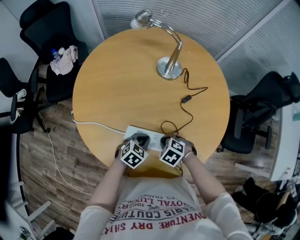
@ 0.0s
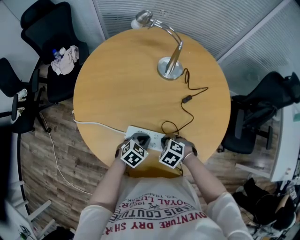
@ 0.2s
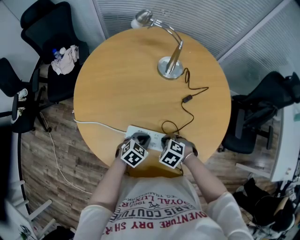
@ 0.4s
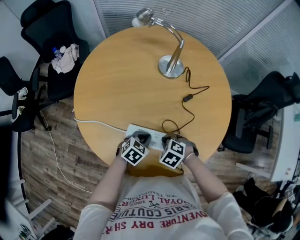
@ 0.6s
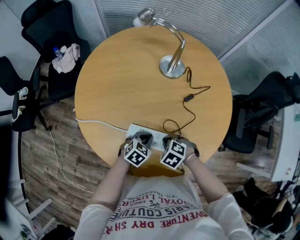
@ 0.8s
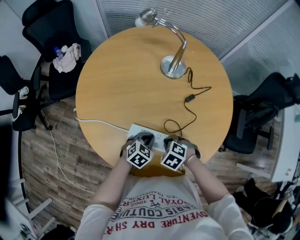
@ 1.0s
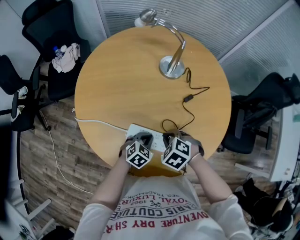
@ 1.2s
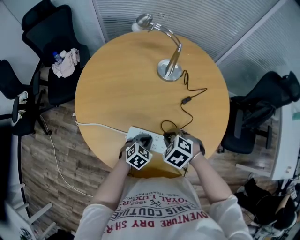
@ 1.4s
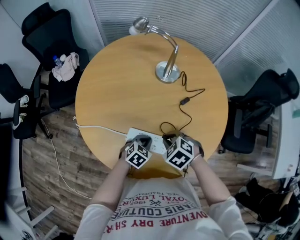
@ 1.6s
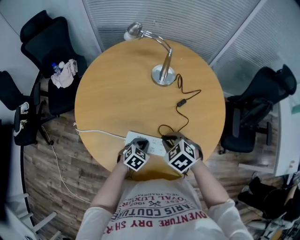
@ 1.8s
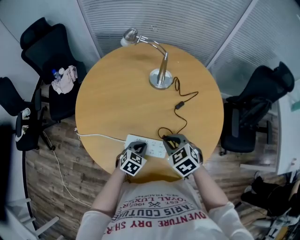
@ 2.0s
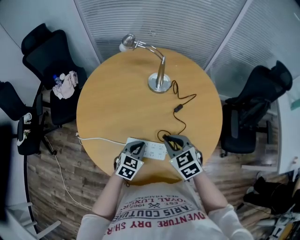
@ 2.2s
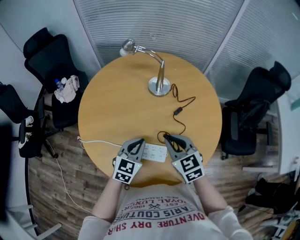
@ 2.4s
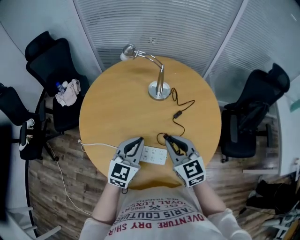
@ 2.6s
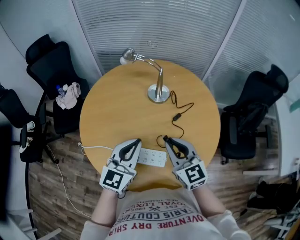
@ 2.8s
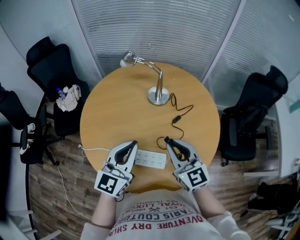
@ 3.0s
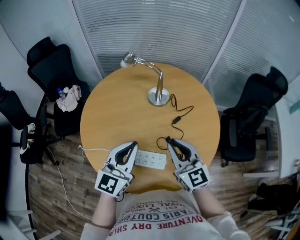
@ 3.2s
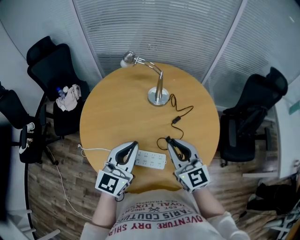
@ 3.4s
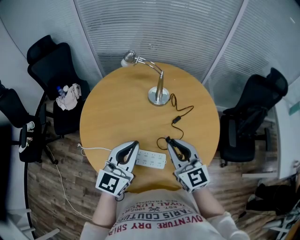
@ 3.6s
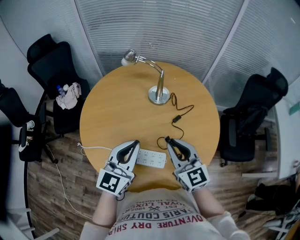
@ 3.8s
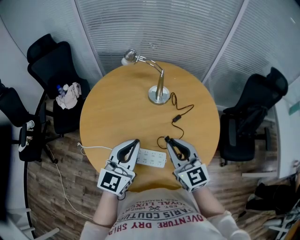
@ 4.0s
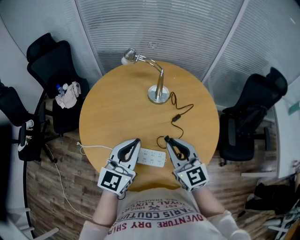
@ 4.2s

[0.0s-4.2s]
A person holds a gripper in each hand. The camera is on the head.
0.0s to 1.4s: The right gripper travels upward by roughly 10 cm.
1.4s to 2.8s: The right gripper moves upward, approximately 20 cm, and tilts its fingers approximately 60 degrees upward. The left gripper moves upward, approximately 30 cm, and tilts its fingers some 50 degrees upward.
2.8s to 4.2s: The grippers stay close to where they were, moving slightly.

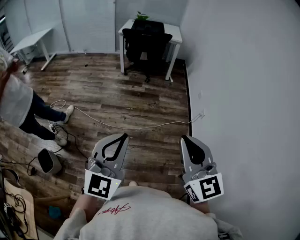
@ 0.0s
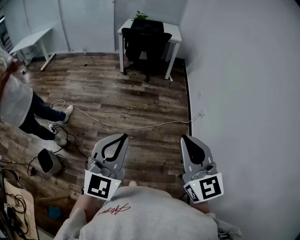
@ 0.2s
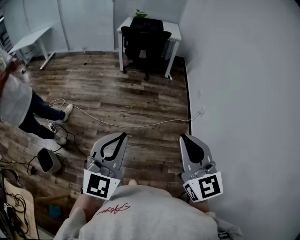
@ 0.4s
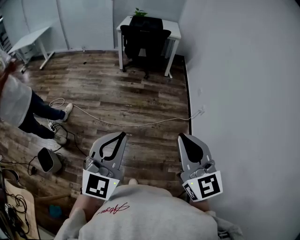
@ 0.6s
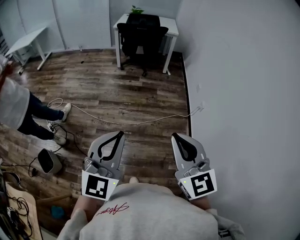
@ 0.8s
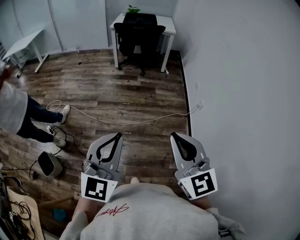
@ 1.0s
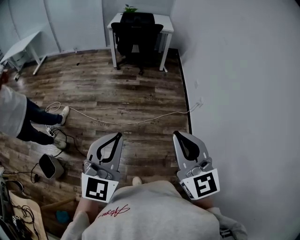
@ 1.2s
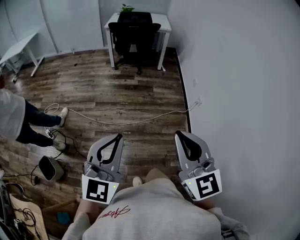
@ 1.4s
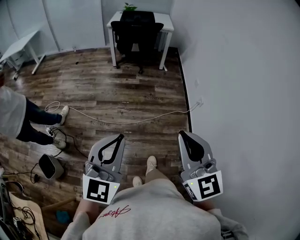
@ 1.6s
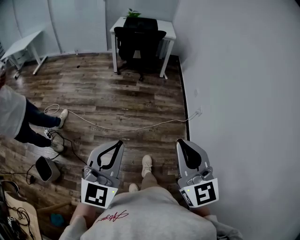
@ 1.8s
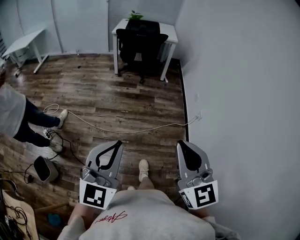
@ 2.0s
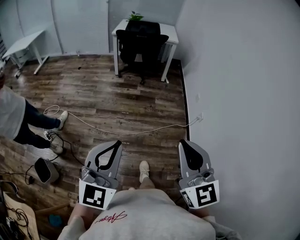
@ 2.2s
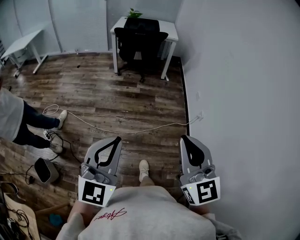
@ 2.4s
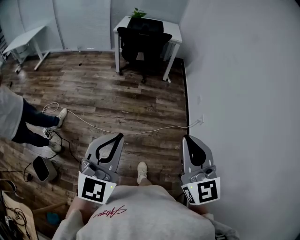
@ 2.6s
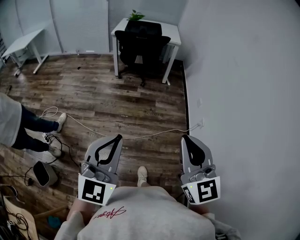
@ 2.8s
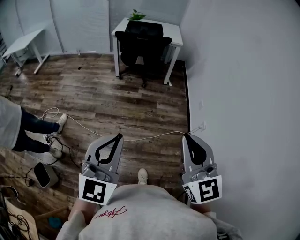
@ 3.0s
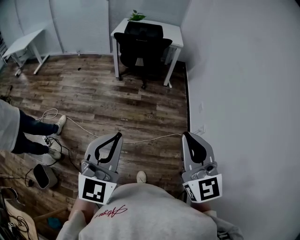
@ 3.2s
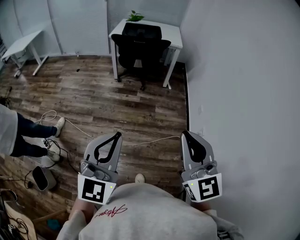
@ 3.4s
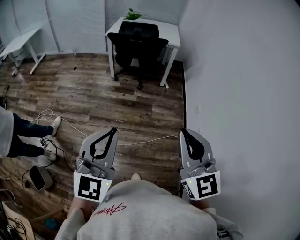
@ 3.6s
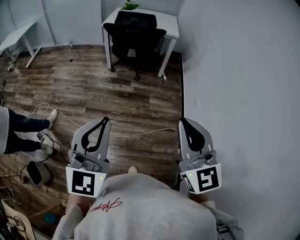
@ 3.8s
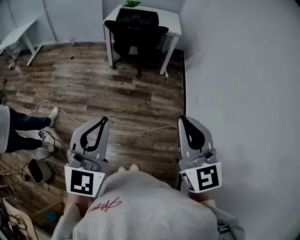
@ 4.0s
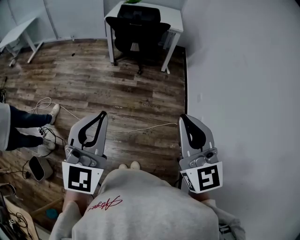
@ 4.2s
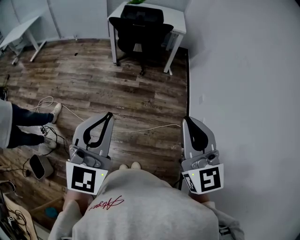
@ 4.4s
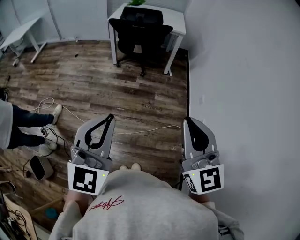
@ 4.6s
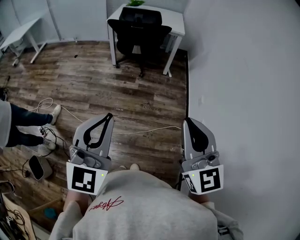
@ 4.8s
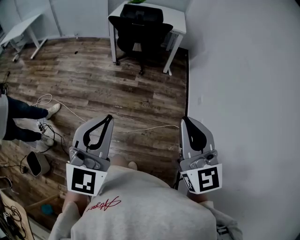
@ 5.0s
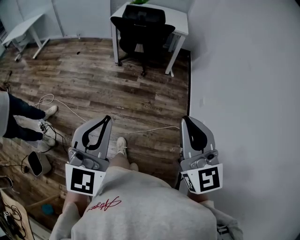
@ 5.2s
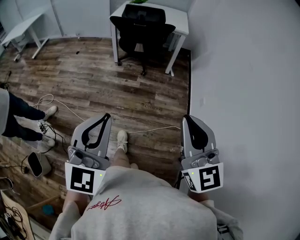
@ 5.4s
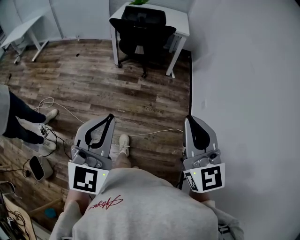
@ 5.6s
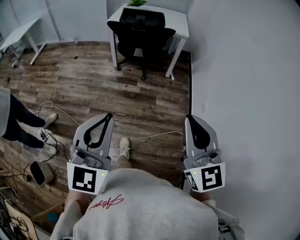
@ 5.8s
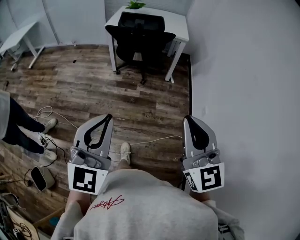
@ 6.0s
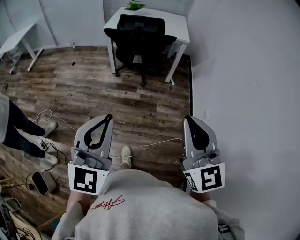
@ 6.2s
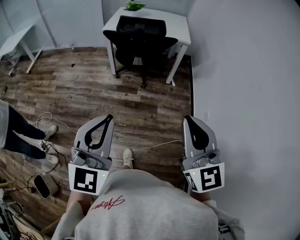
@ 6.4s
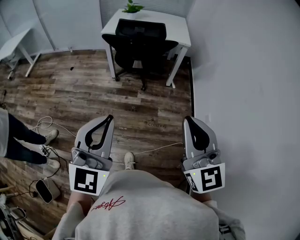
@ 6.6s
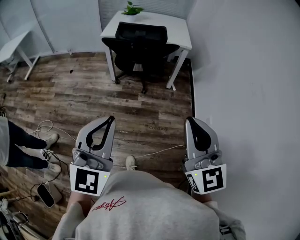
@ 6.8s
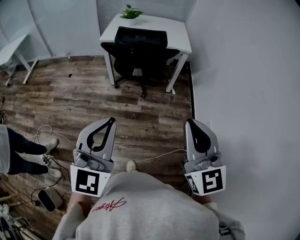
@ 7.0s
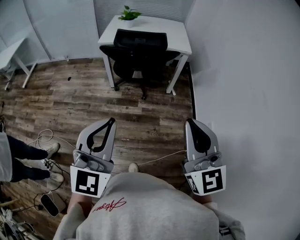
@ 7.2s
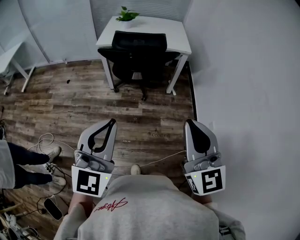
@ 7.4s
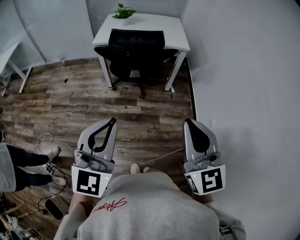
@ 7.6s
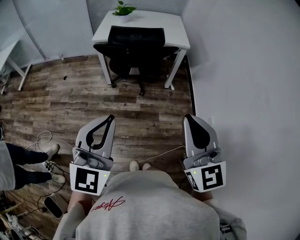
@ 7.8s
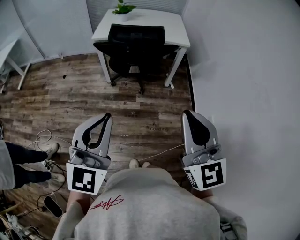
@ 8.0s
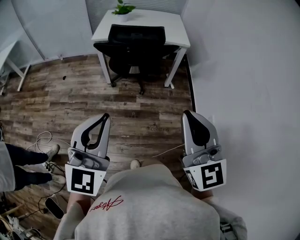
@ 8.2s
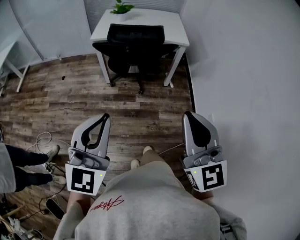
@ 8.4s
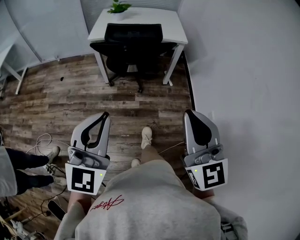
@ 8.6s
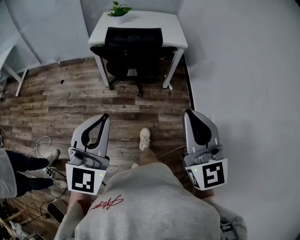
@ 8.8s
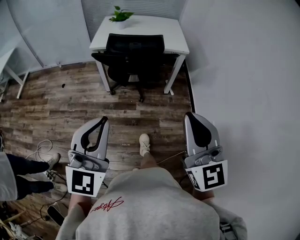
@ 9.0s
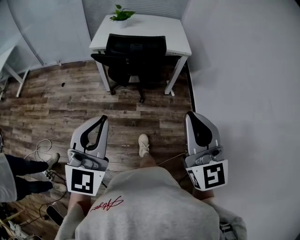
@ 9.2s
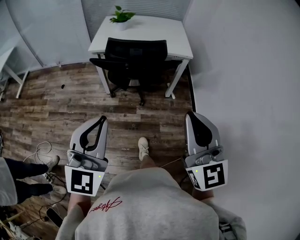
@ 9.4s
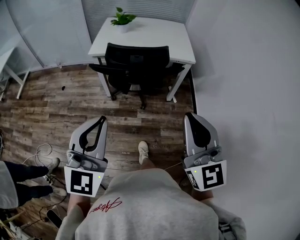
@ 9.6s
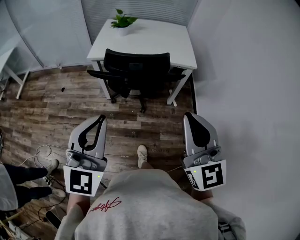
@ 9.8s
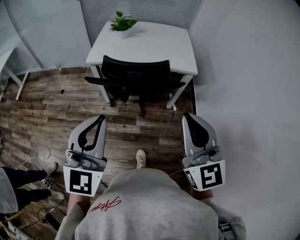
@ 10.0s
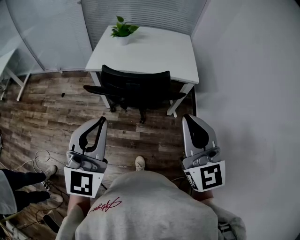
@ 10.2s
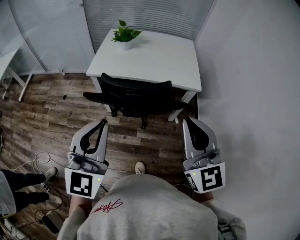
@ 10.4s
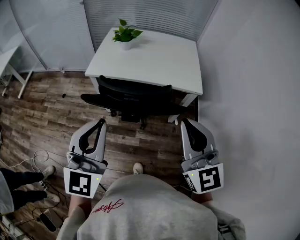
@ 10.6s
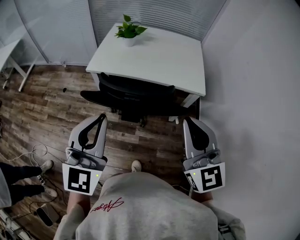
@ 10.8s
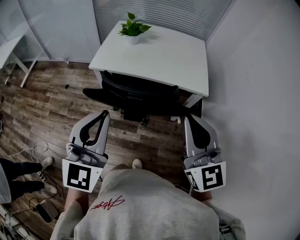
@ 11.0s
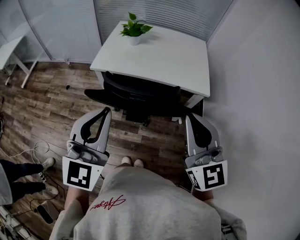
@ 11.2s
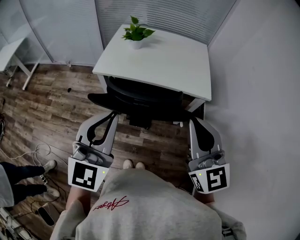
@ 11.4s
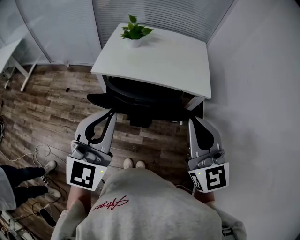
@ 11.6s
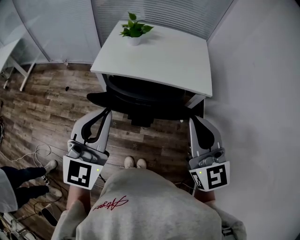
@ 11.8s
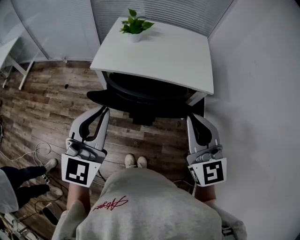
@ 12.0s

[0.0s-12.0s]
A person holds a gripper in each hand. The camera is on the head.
0.0s to 1.6s: The grippers move only a little.
1.6s to 3.0s: The grippers both shift forward by roughly 20 cm.
3.0s to 4.4s: The grippers both shift forward by some 15 cm.
4.4s to 6.0s: Both grippers travel together forward, approximately 15 cm.
6.0s to 7.6s: The two grippers go approximately 20 cm forward.
7.6s to 9.0s: The left gripper ends up roughly 5 cm from where it was; the right gripper moves forward, about 5 cm.
9.0s to 10.4s: Both grippers move forward, about 30 cm.
10.4s to 12.0s: The grippers both shift forward by approximately 10 cm.

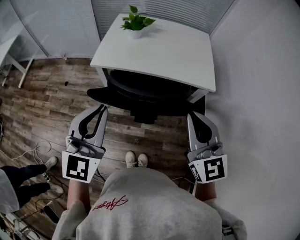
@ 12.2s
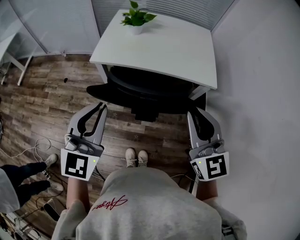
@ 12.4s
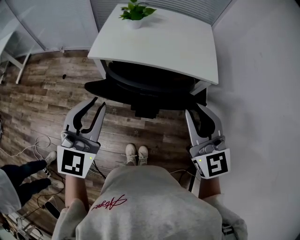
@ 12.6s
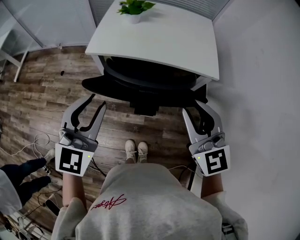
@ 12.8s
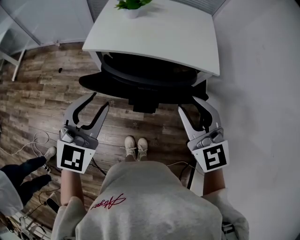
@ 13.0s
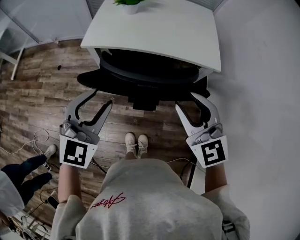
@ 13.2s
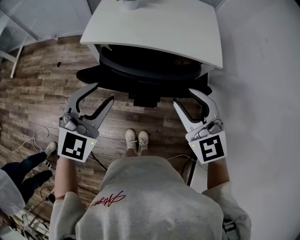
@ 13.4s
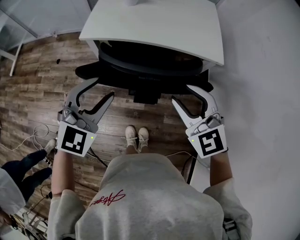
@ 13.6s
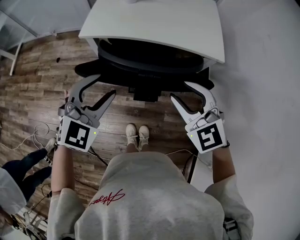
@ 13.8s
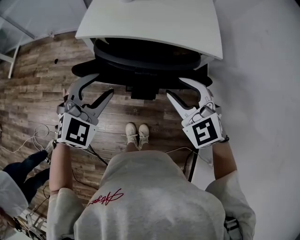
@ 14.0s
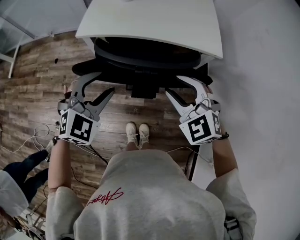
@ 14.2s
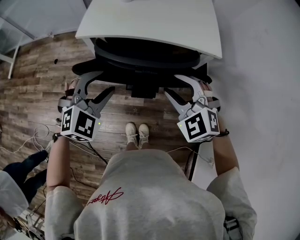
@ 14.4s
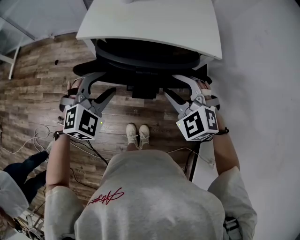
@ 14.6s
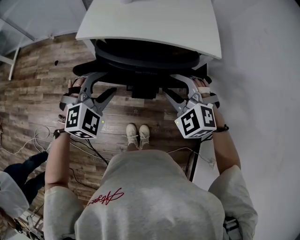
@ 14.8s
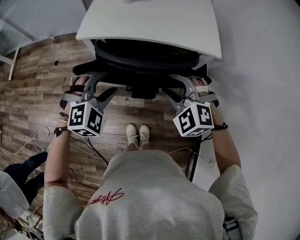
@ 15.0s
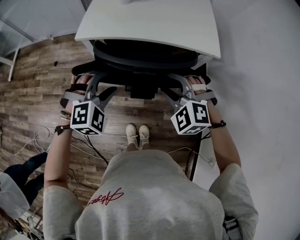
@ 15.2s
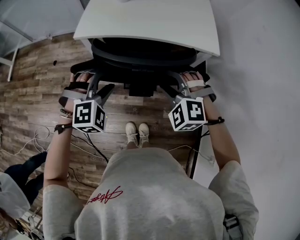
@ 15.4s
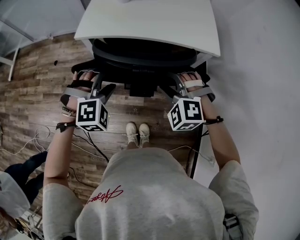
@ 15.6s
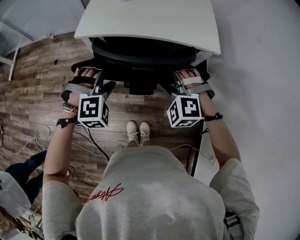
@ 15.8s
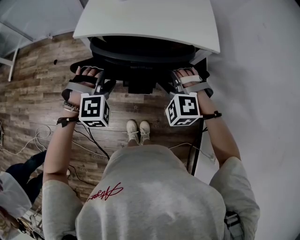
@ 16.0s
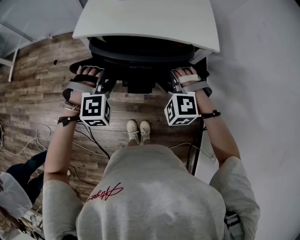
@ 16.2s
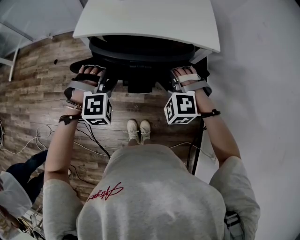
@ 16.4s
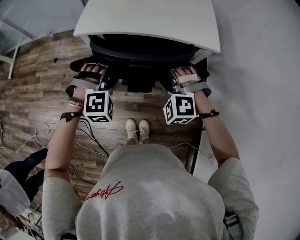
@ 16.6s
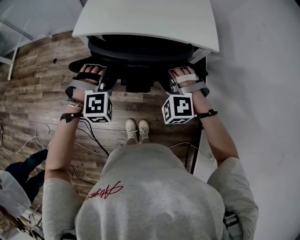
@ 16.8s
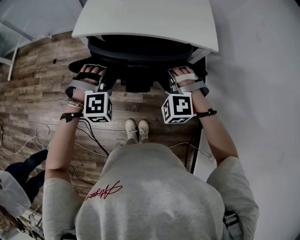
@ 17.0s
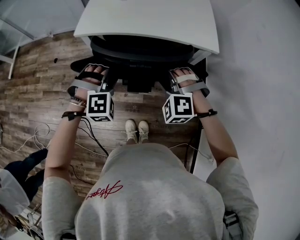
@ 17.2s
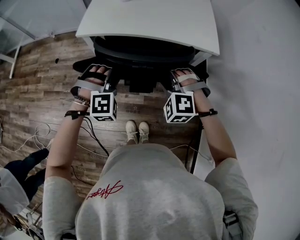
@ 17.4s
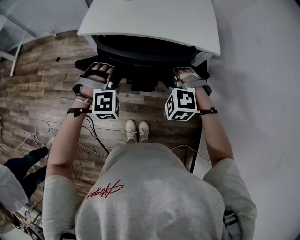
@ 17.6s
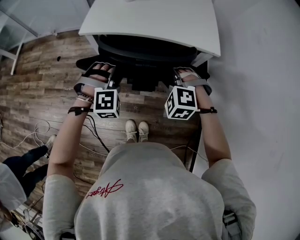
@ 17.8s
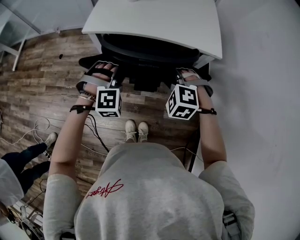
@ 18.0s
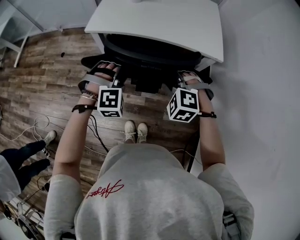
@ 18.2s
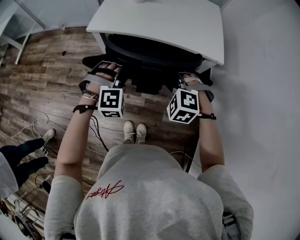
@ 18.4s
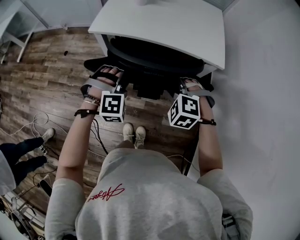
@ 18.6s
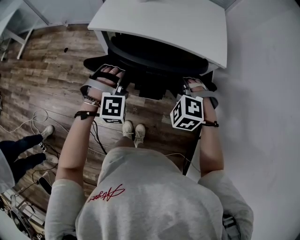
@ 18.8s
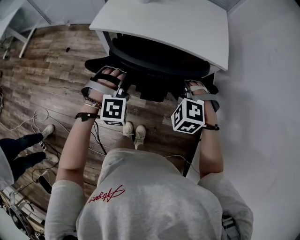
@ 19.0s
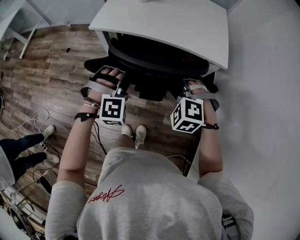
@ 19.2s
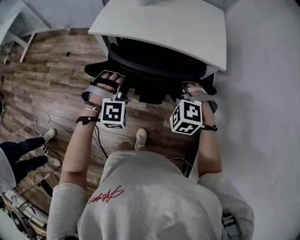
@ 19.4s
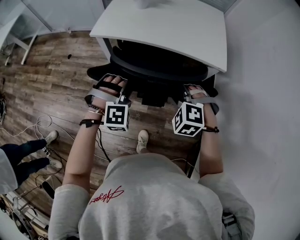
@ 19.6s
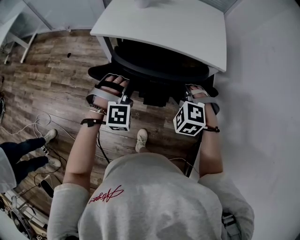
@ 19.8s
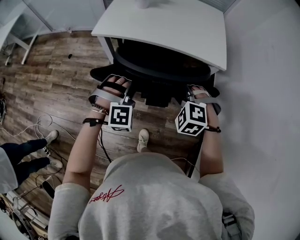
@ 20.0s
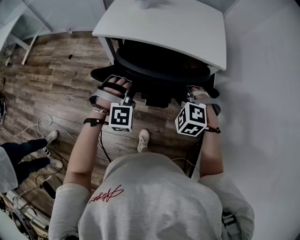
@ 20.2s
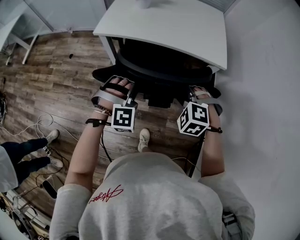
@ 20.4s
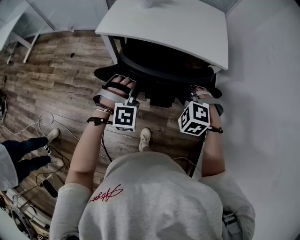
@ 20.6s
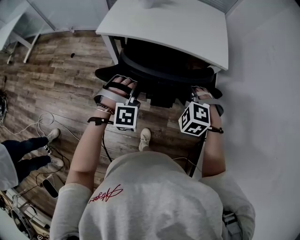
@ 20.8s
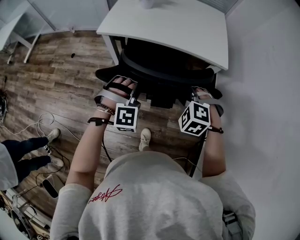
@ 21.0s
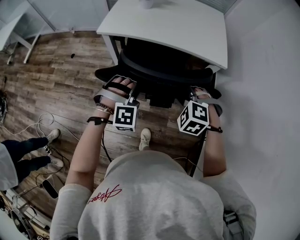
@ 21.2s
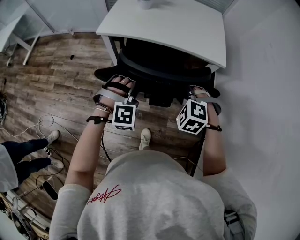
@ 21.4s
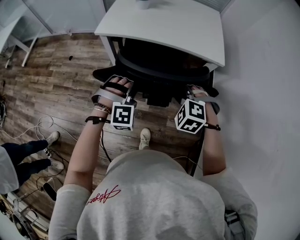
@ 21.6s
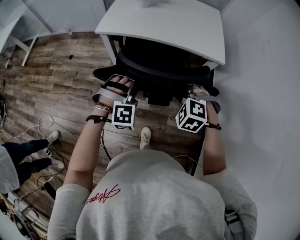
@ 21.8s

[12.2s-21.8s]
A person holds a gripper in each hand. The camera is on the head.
12.2s to 13.8s: The two grippers go about 10 cm downward. The left gripper changes its angle by about 40 degrees, and opens; the right gripper changes its angle by some 30 degrees, and opens.
13.8s to 15.4s: Both grippers travel together downward, approximately 10 cm. The left gripper rotates about 40 degrees. The right gripper changes its angle by about 30 degrees.
15.4s to 17.0s: The left gripper closes up.
17.0s to 18.6s: The grippers move only a little.
18.6s to 20.2s: The left gripper changes place by roughly 5 cm.
20.2s to 21.8s: There are only small adjustments of the grippers.
